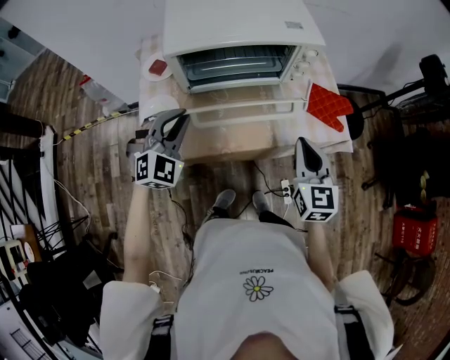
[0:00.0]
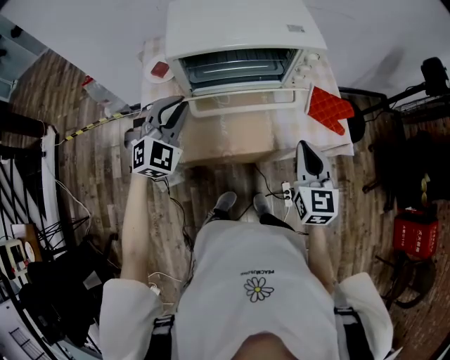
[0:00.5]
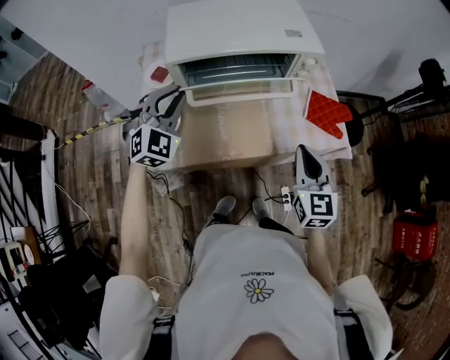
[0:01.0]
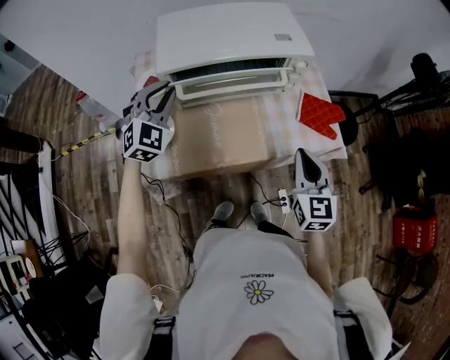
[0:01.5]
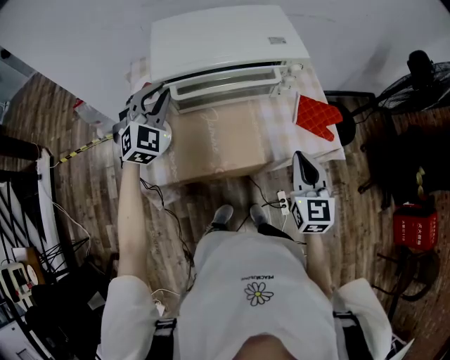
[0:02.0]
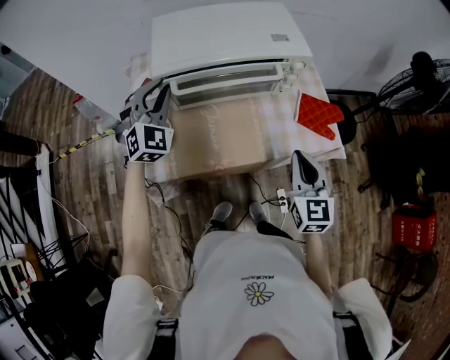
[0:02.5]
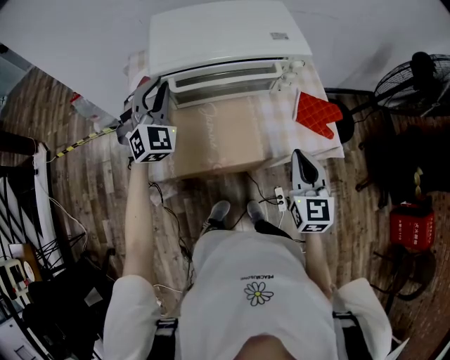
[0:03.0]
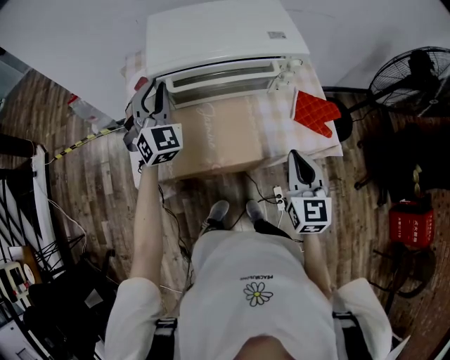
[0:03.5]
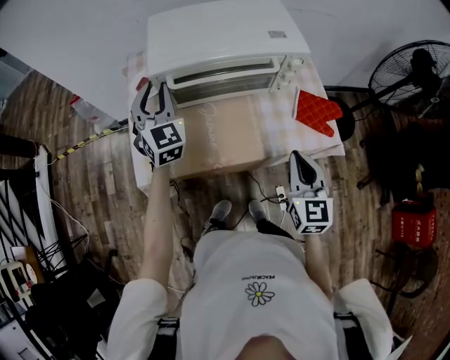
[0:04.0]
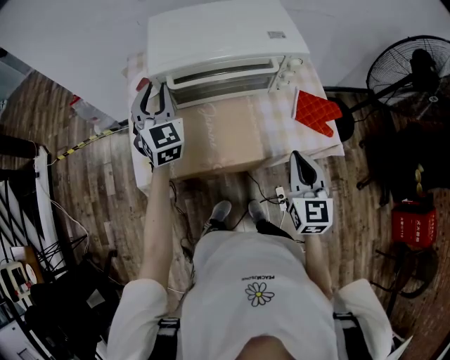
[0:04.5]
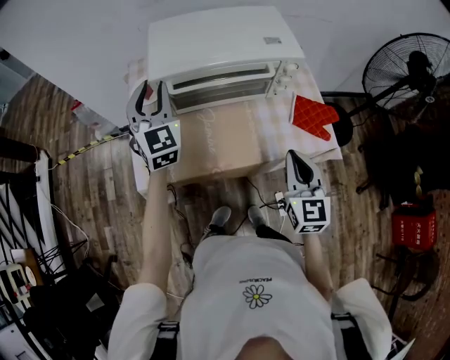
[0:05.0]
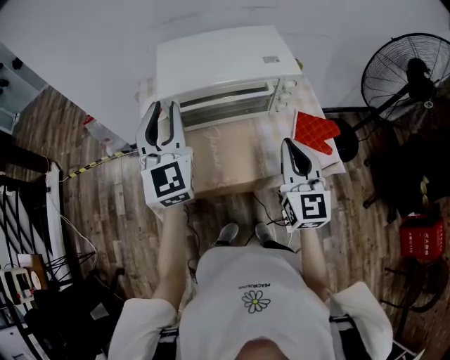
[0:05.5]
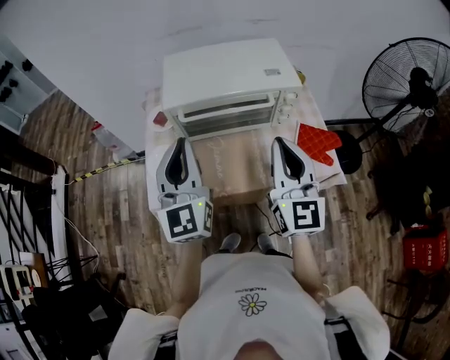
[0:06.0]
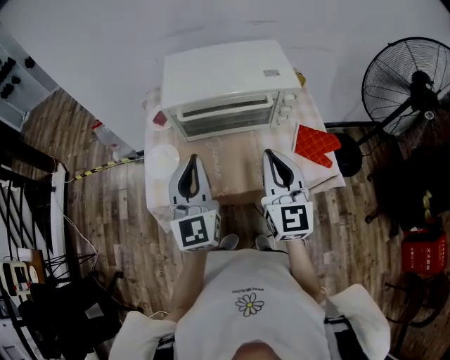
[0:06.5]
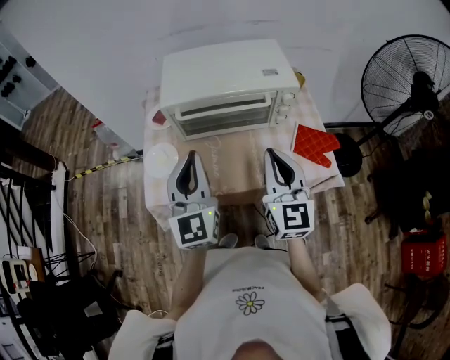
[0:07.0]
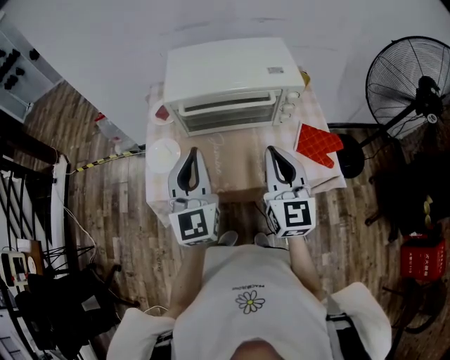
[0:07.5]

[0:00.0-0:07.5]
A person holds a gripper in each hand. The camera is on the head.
0:00.0 to 0:02.0: The left gripper travels forward and upward by approximately 15 cm.
0:02.0 to 0:04.0: The left gripper turns by about 40 degrees.
0:04.0 to 0:05.5: The right gripper goes approximately 10 cm upward, while the left gripper is displaced upward and backward by roughly 15 cm.
0:05.5 to 0:07.5: The left gripper heads backward, covering approximately 10 cm, and closes up.

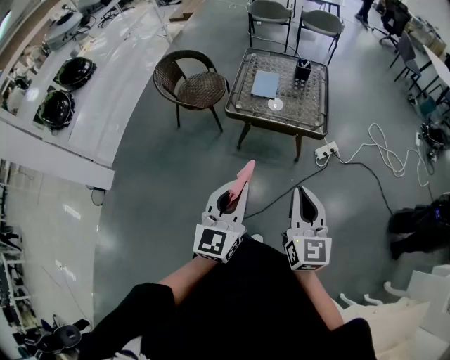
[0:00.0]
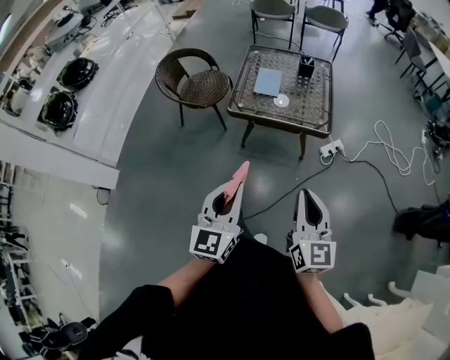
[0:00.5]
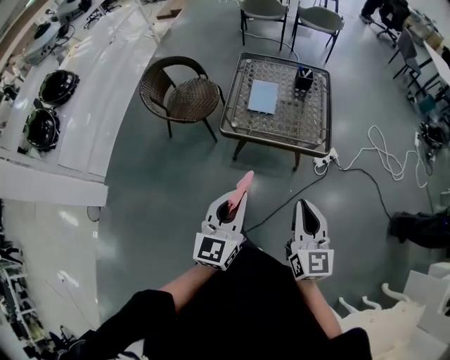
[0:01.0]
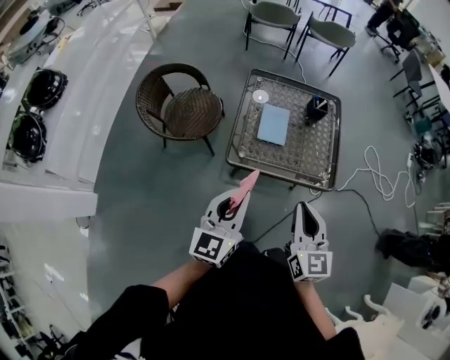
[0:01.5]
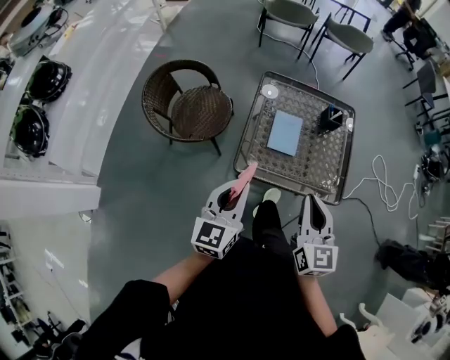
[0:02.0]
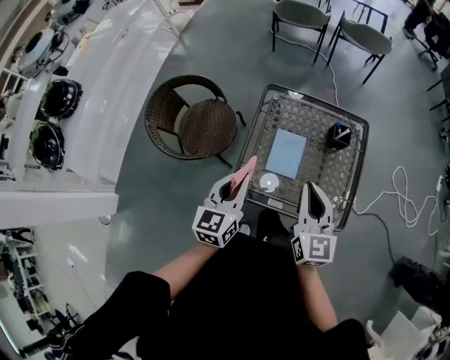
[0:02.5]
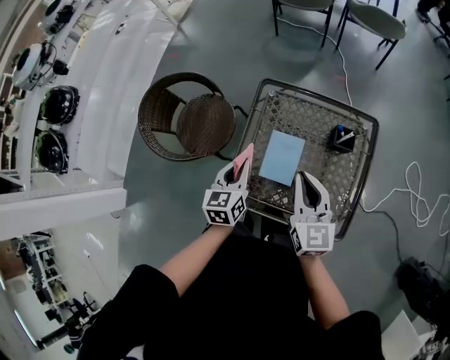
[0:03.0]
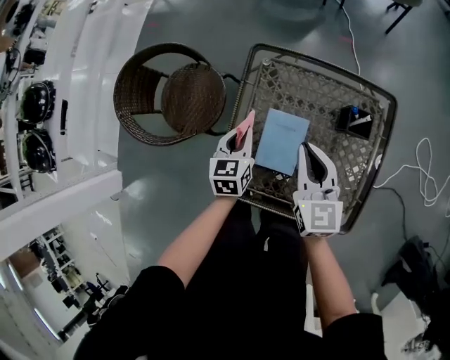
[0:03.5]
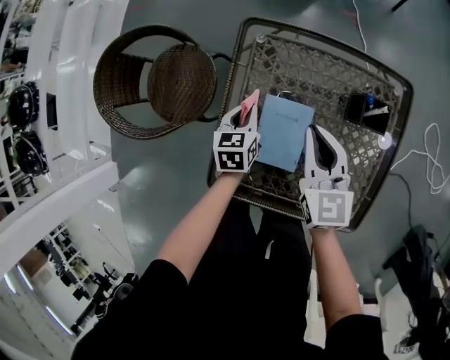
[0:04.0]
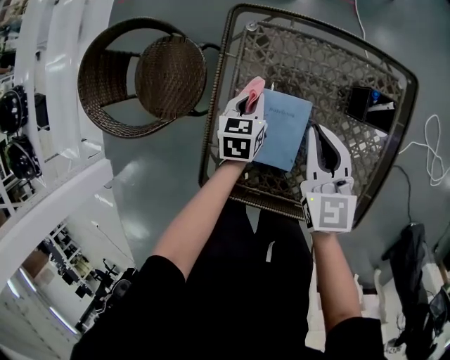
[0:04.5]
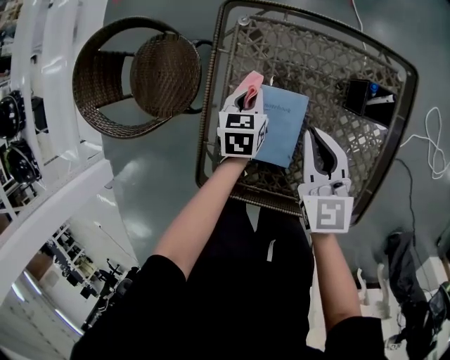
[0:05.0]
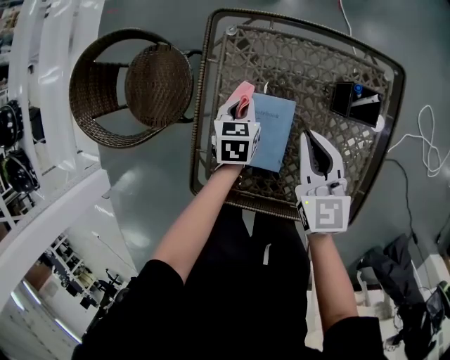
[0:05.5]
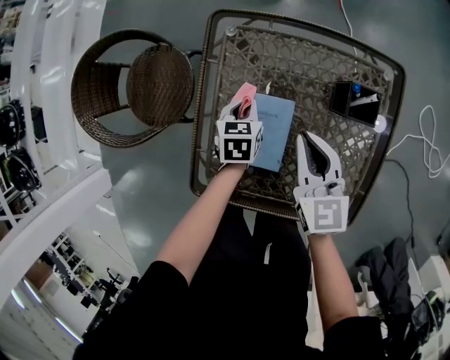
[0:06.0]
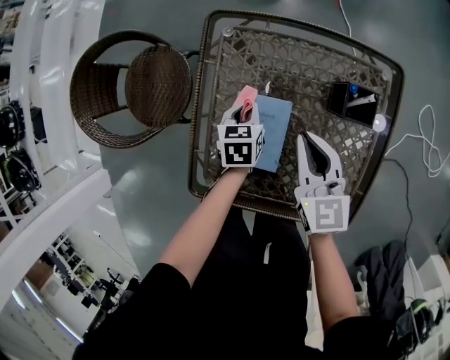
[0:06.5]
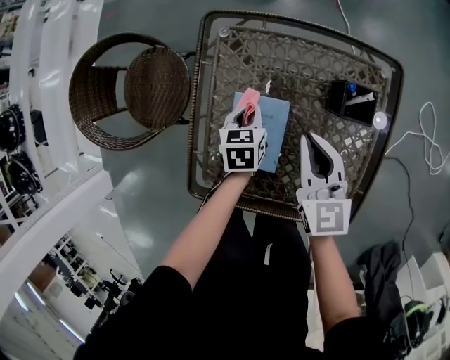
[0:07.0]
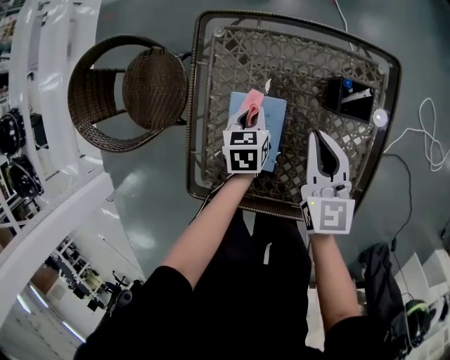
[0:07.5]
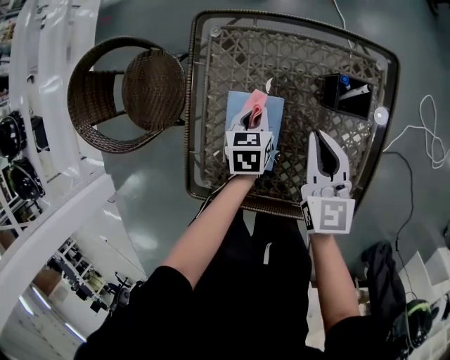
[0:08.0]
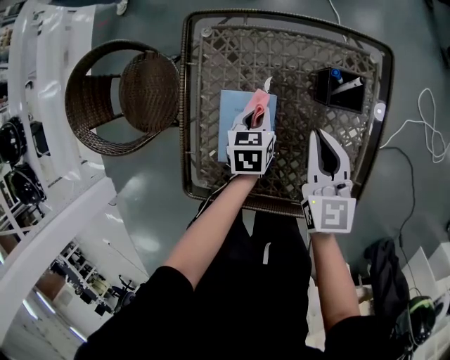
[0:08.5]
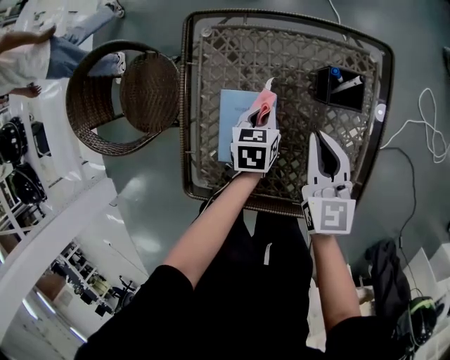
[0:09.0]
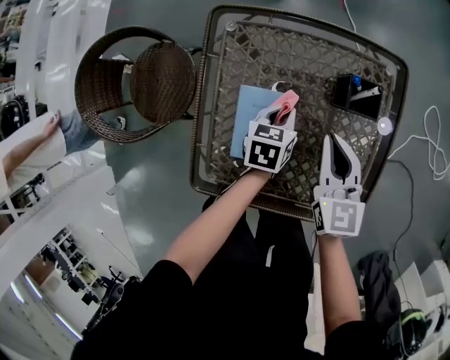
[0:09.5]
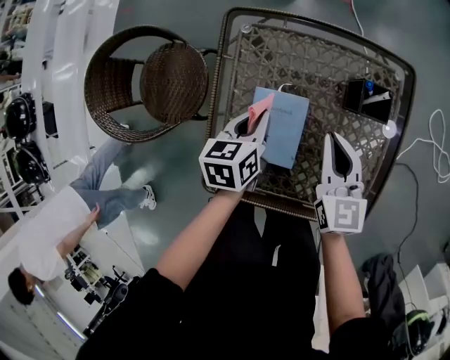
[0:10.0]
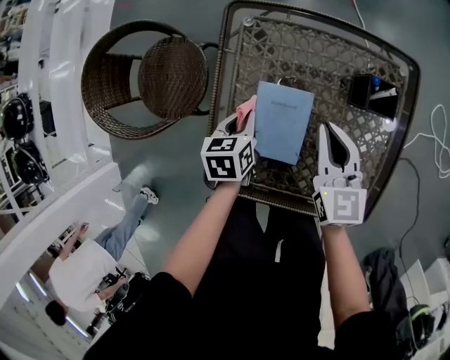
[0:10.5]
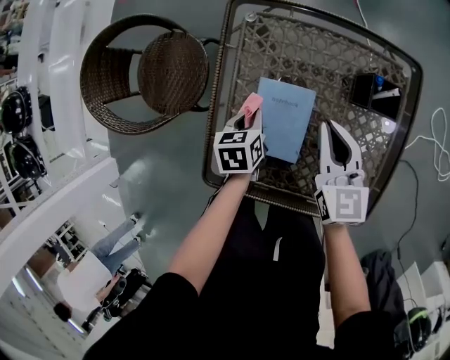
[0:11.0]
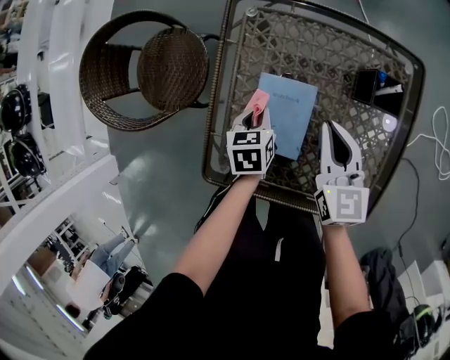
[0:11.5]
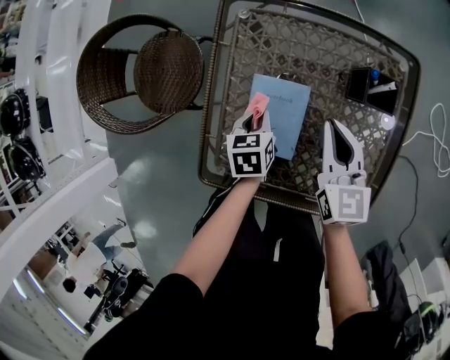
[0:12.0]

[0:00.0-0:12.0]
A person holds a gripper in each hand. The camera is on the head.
0:00.0 to 0:02.0: The pair of grippers is taken forward, some 50 cm.
0:02.0 to 0:04.0: The grippers both shift forward and downward by some 50 cm. The left gripper tips its fingers downward by some 40 degrees.
0:04.0 to 0:06.0: The right gripper moves approximately 5 cm. Meanwhile the left gripper goes about 10 cm to the right and downward.
0:06.0 to 0:08.0: The two grippers go approximately 5 cm to the right.
0:08.0 to 0:10.0: The left gripper heads upward and to the left, covering about 10 cm.
0:10.0 to 0:12.0: The left gripper heads downward, covering roughly 10 cm.

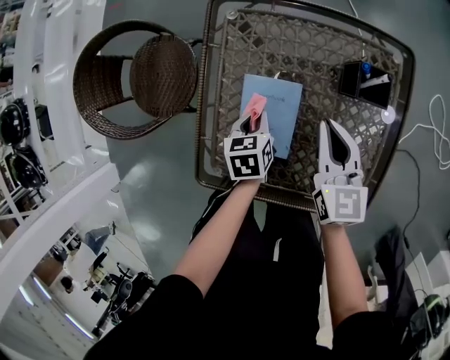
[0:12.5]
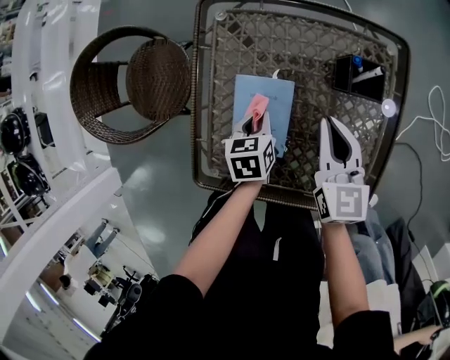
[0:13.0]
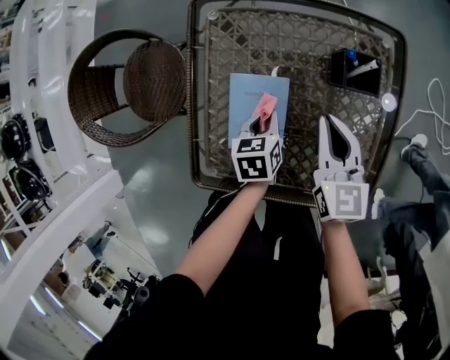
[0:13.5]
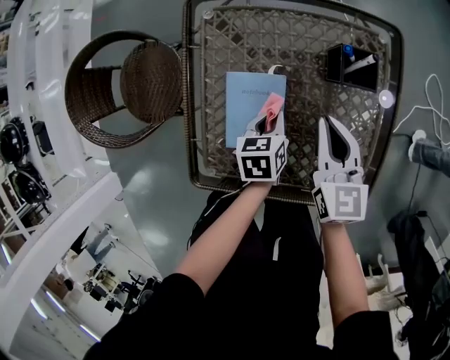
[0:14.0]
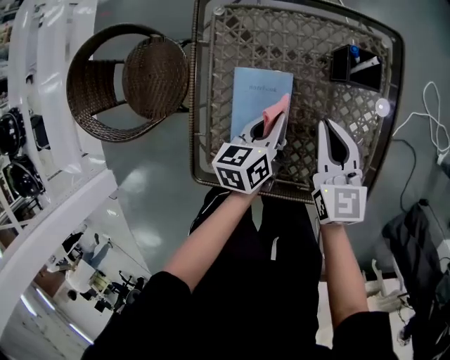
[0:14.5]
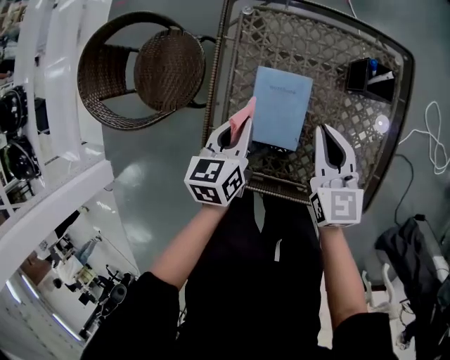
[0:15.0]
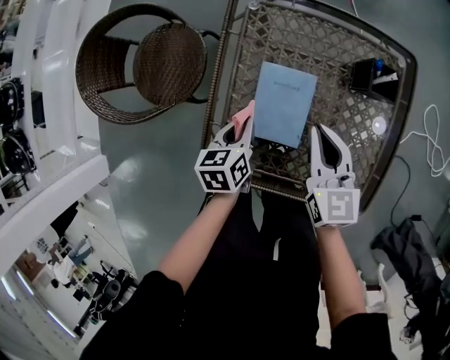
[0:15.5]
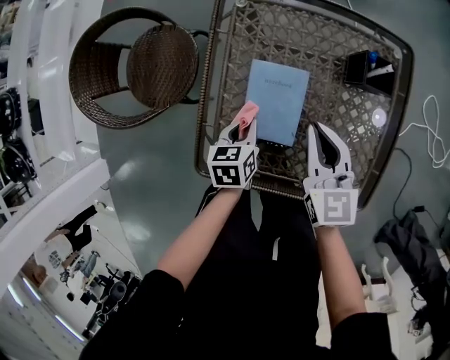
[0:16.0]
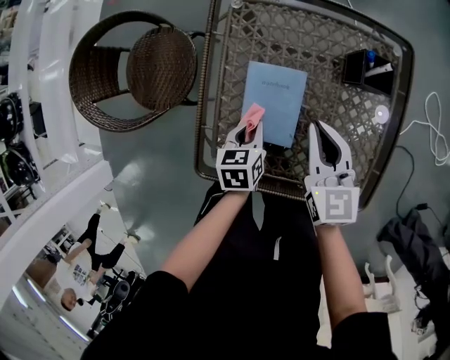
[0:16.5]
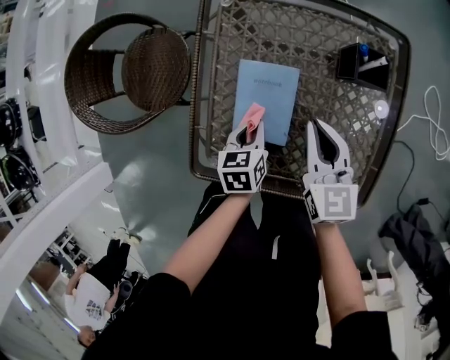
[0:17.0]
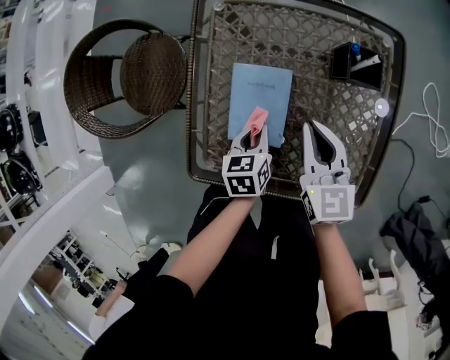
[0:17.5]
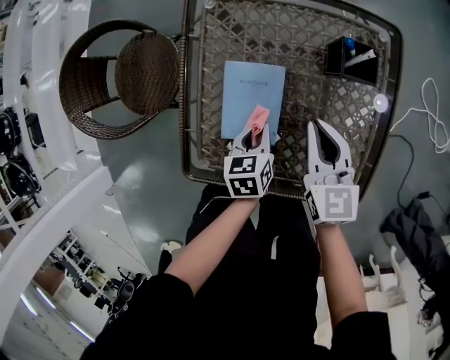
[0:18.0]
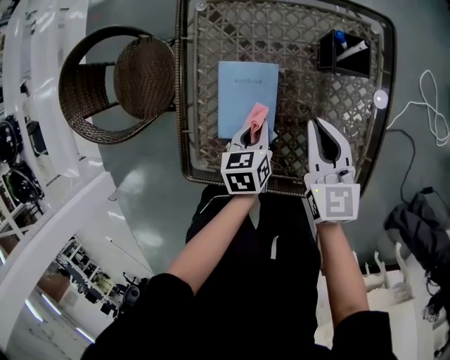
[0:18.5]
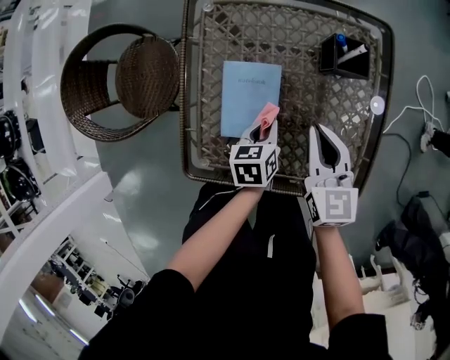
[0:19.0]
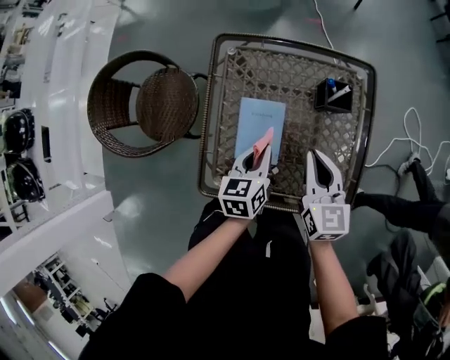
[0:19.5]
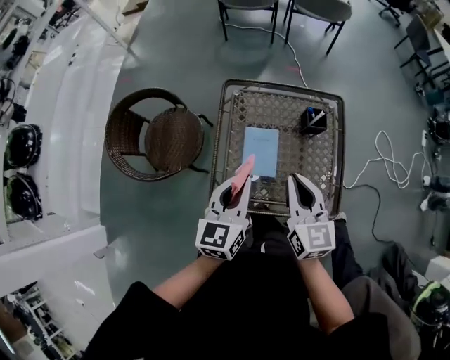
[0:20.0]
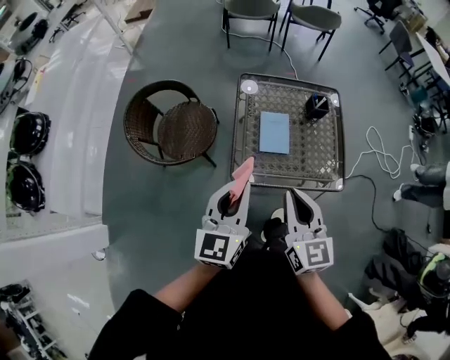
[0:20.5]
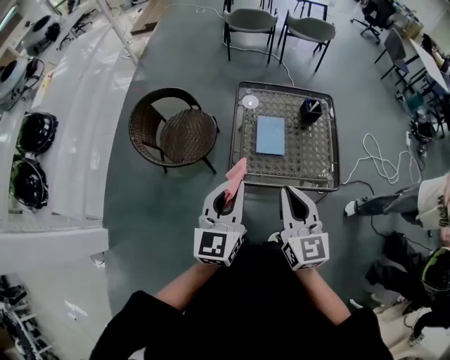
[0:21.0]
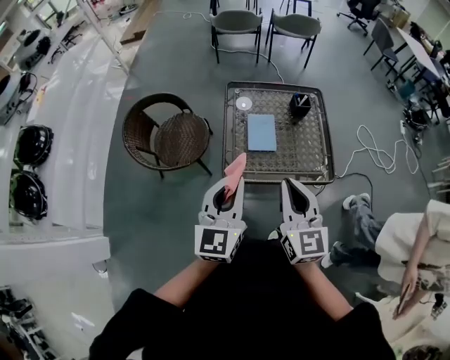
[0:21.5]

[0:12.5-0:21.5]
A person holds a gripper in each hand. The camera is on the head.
0:12.5 to 0:14.5: The left gripper is displaced to the right and upward by roughly 10 cm, and rotates about 30 degrees.
0:14.5 to 0:17.0: The left gripper shifts about 10 cm to the left and downward, and rotates roughly 20 degrees.
0:17.0 to 0:19.5: The right gripper shifts roughly 10 cm upward, while the left gripper shifts roughly 15 cm upward.
0:19.5 to 0:21.5: The left gripper goes approximately 50 cm upward, backward and to the left, and tips its fingers upward by approximately 30 degrees. The right gripper shifts some 50 cm backward, upward and to the left.
